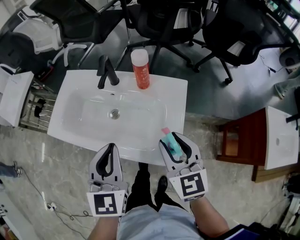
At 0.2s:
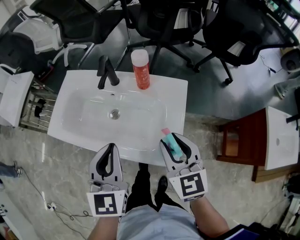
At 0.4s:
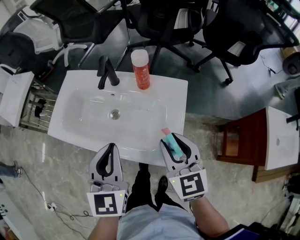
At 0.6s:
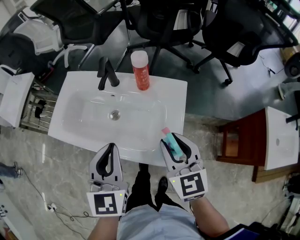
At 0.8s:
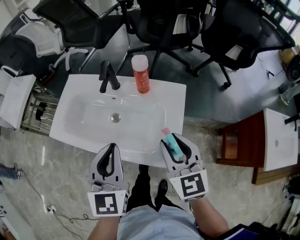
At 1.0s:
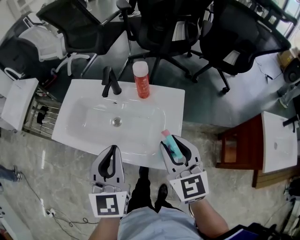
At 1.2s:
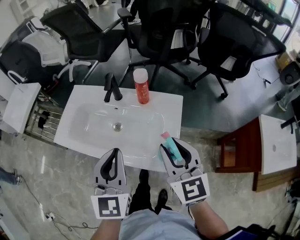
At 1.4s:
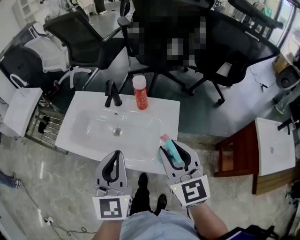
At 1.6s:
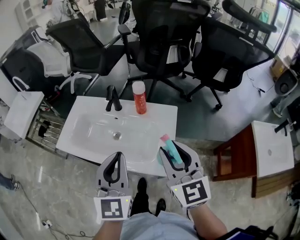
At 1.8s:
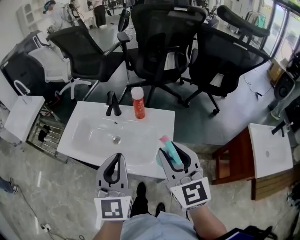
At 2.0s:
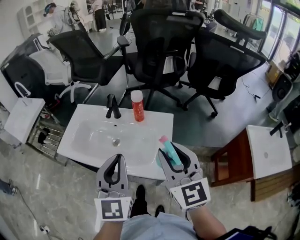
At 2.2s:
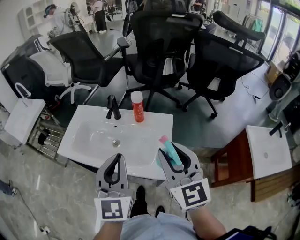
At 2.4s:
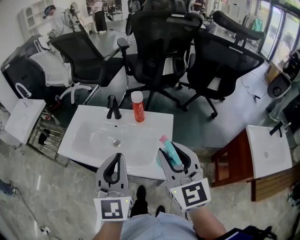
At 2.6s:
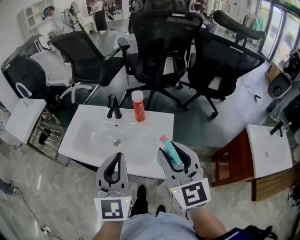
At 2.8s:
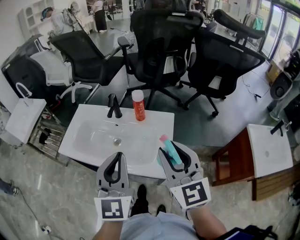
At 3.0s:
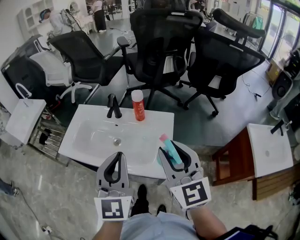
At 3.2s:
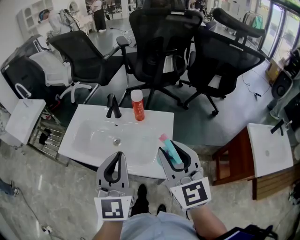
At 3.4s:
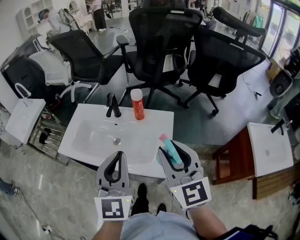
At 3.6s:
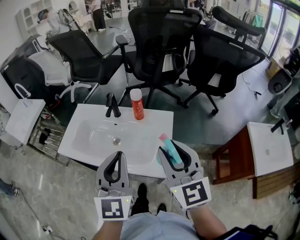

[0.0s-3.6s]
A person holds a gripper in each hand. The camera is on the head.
0.0s to 1.8s: The left gripper shifts roughly 10 cm upward and backward, while the right gripper heads upward, covering roughly 15 cm.
1.8s to 3.6s: The grippers move only a little.

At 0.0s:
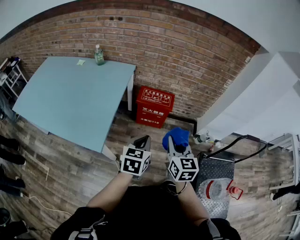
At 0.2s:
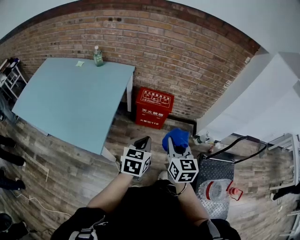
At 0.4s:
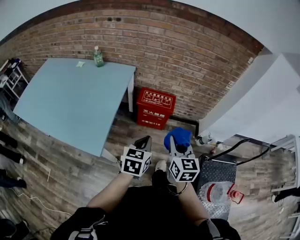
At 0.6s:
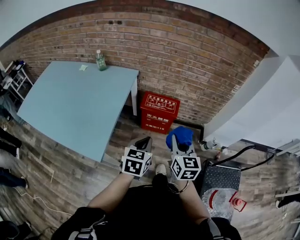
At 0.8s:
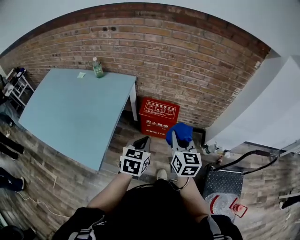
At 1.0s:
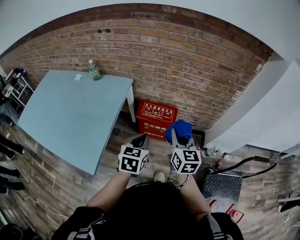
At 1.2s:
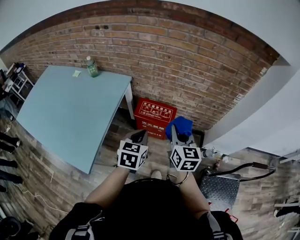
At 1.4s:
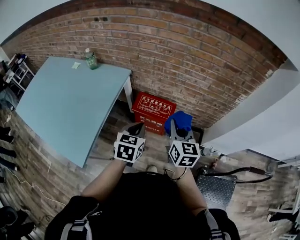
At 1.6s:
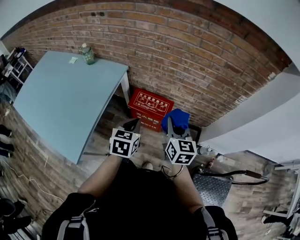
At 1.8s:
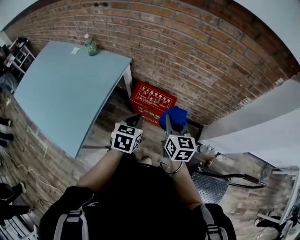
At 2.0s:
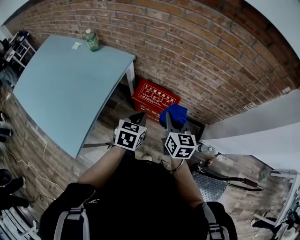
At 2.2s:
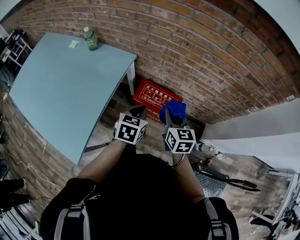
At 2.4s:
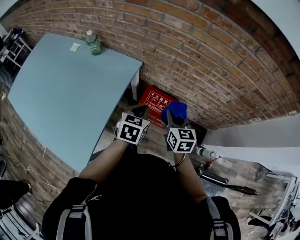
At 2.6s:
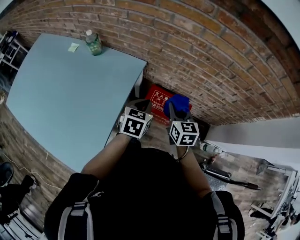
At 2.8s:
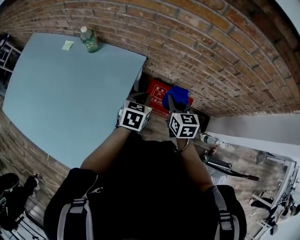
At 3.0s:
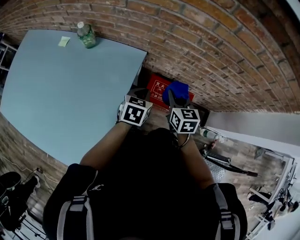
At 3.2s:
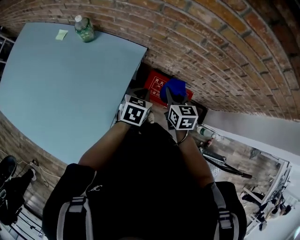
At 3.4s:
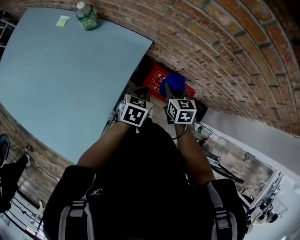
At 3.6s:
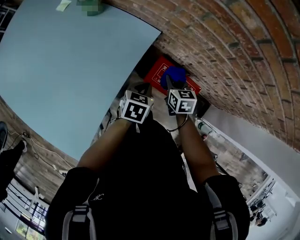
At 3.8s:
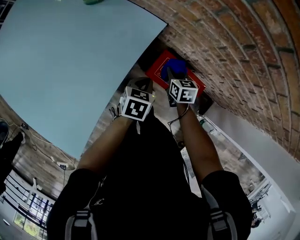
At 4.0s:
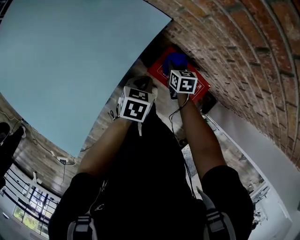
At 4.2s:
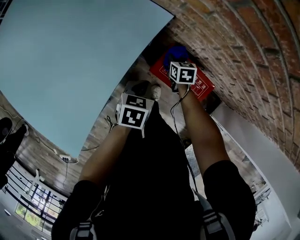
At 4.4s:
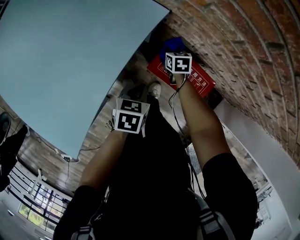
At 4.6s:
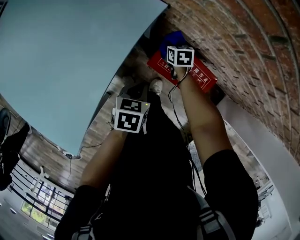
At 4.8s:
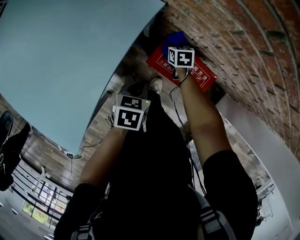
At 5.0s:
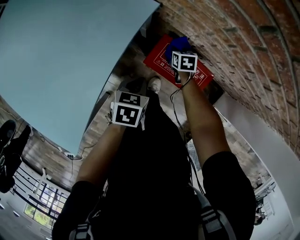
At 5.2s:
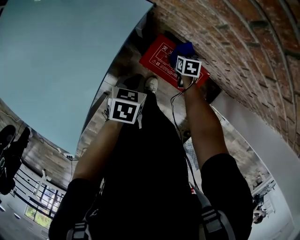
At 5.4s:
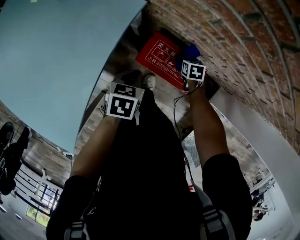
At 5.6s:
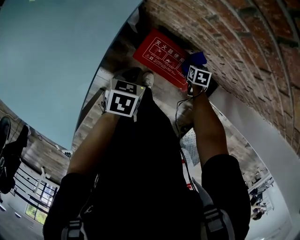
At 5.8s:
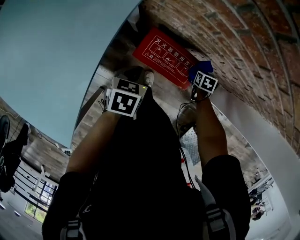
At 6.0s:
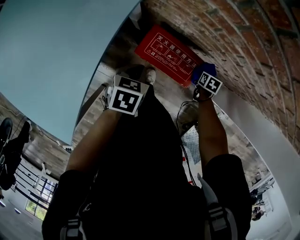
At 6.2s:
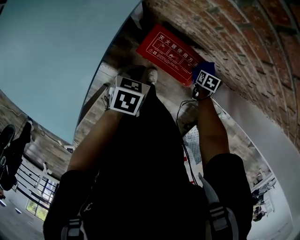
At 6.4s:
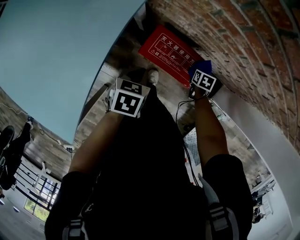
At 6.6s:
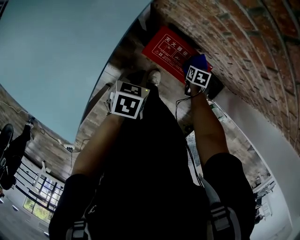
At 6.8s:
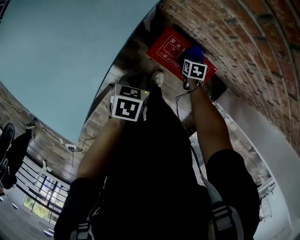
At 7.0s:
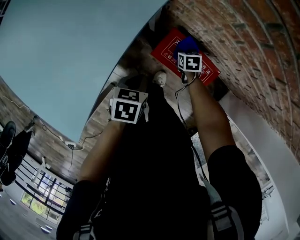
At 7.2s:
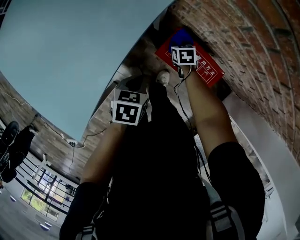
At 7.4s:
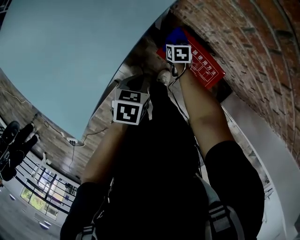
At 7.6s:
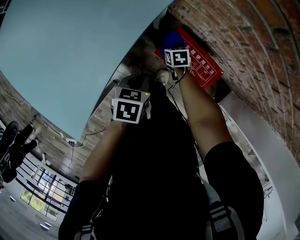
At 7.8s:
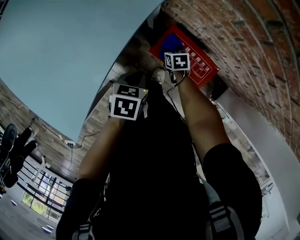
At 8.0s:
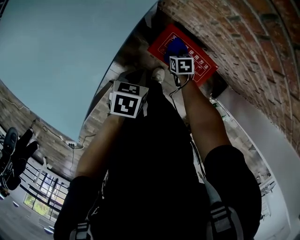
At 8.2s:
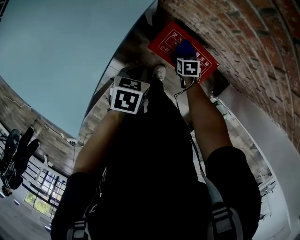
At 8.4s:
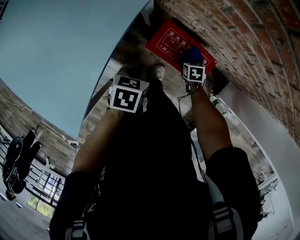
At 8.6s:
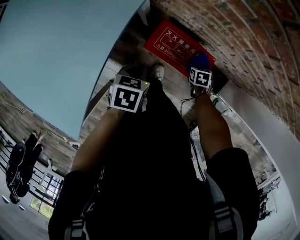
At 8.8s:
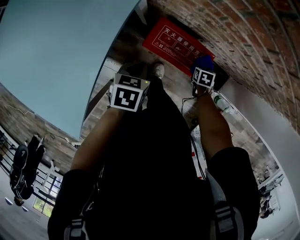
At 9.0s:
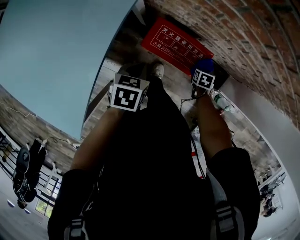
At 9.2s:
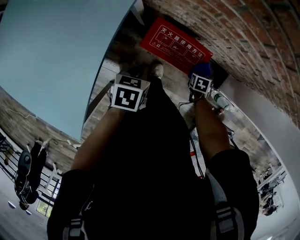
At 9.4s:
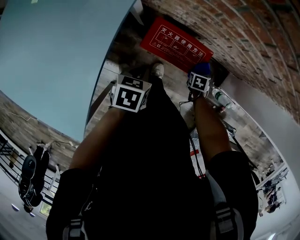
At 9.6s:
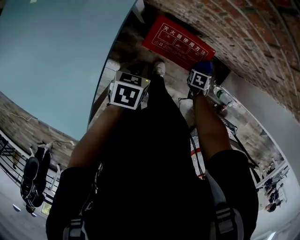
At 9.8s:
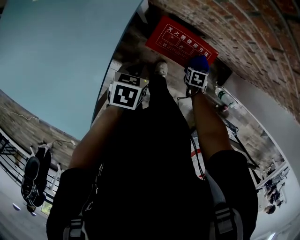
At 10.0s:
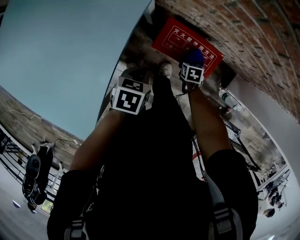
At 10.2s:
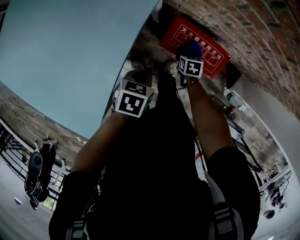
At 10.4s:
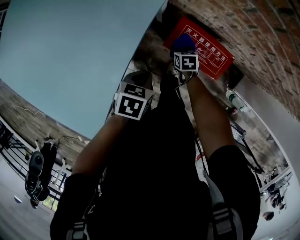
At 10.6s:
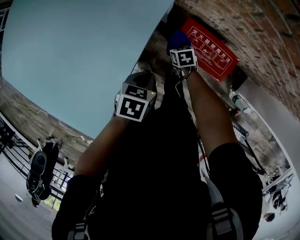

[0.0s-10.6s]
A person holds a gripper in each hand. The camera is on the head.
0.0s to 1.6s: The grippers both shift forward by about 30 cm.
1.6s to 3.0s: The right gripper is displaced forward, to the left and downward by some 35 cm. The left gripper travels forward and to the left by approximately 30 cm.
3.0s to 4.6s: The right gripper heads downward and forward, covering roughly 40 cm, and turns by approximately 30 degrees. Meanwhile the left gripper moves downward, some 20 cm, and turns by about 30 degrees.
4.6s to 6.0s: The left gripper shifts some 5 cm to the right; the right gripper is displaced to the right by roughly 35 cm, and changes its angle by about 30 degrees.
6.0s to 7.6s: The left gripper shifts by approximately 10 cm, while the right gripper ends up about 35 cm from where it was, and rotates some 40 degrees.
7.6s to 9.0s: The right gripper shifts by approximately 30 cm, and changes its angle by some 30 degrees. Meanwhile the left gripper moves some 5 cm.
9.0s to 10.6s: The left gripper shifts by some 10 cm; the right gripper shifts by roughly 35 cm, and swivels some 30 degrees.

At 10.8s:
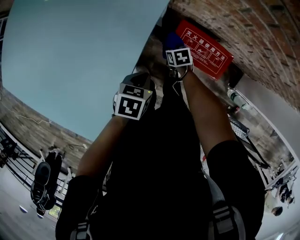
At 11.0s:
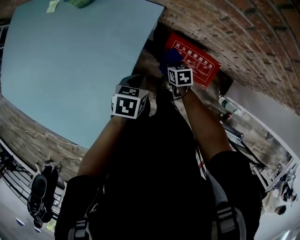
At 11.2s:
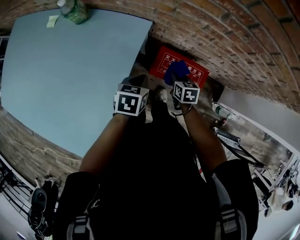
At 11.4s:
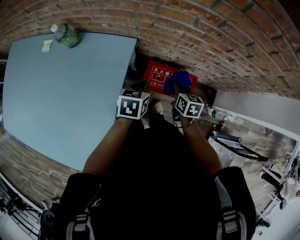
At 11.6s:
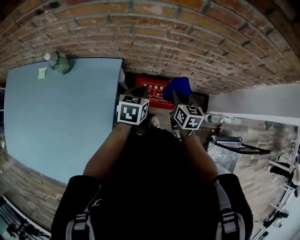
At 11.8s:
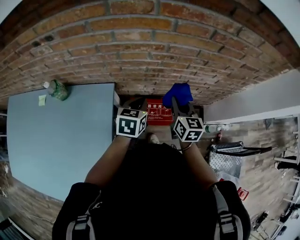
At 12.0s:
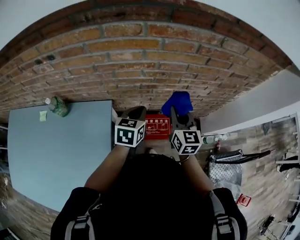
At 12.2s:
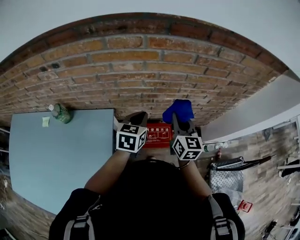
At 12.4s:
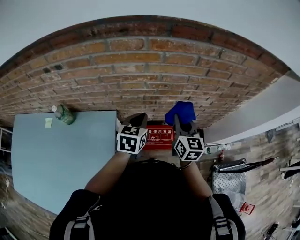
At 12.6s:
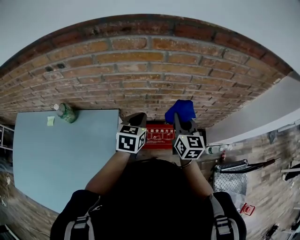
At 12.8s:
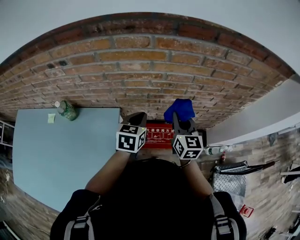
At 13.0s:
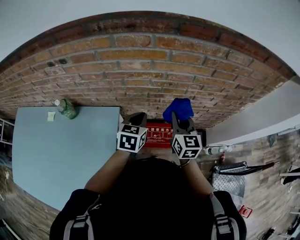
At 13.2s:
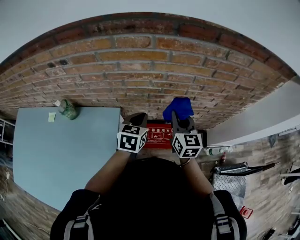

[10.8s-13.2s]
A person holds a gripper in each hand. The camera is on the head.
10.8s to 12.0s: The right gripper goes roughly 50 cm upward, and points its fingers roughly 50 degrees further upward; the left gripper moves upward, roughly 25 cm, and angles its fingers upward, by about 30 degrees.
12.0s to 13.2s: The grippers stay close to where they were, moving slightly.

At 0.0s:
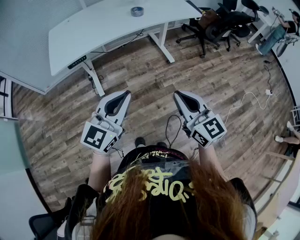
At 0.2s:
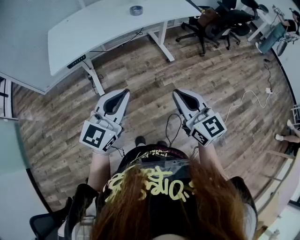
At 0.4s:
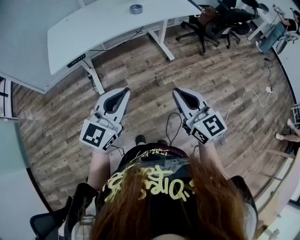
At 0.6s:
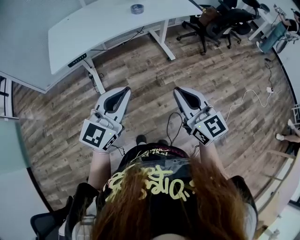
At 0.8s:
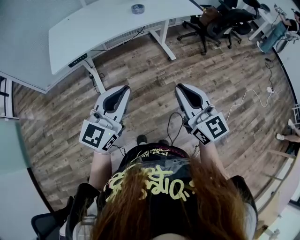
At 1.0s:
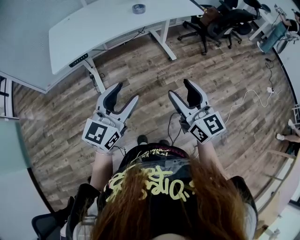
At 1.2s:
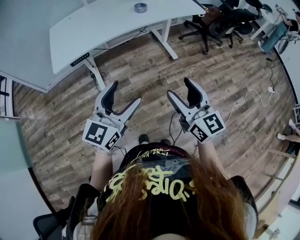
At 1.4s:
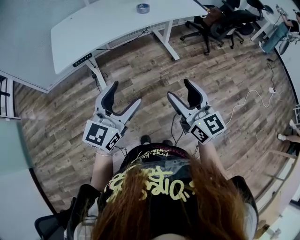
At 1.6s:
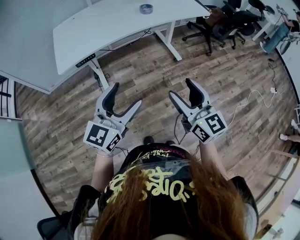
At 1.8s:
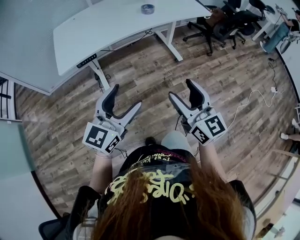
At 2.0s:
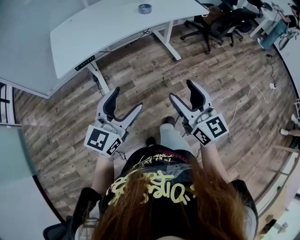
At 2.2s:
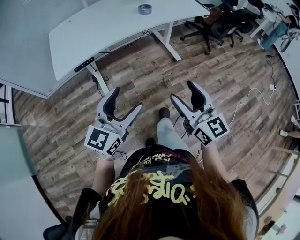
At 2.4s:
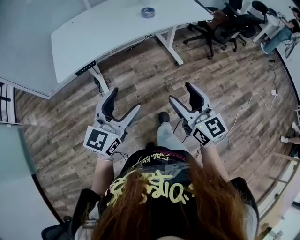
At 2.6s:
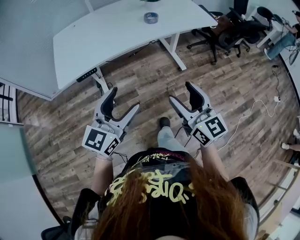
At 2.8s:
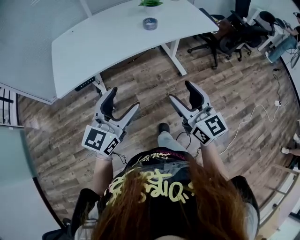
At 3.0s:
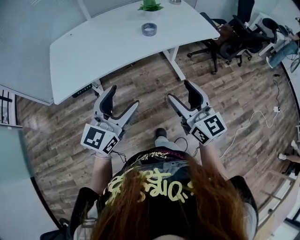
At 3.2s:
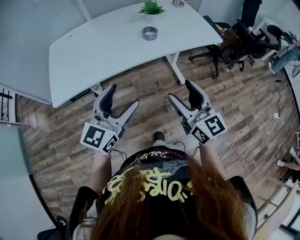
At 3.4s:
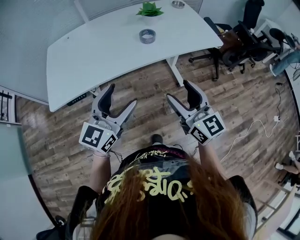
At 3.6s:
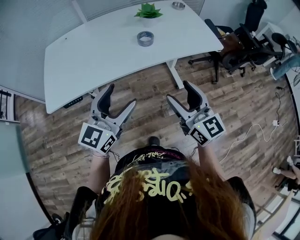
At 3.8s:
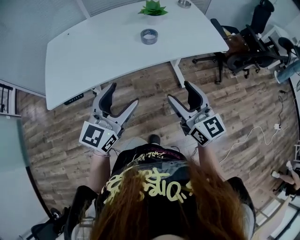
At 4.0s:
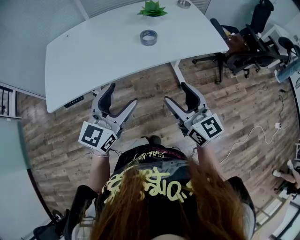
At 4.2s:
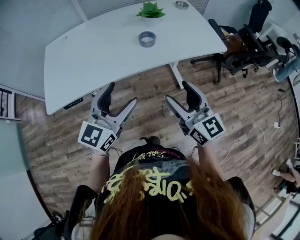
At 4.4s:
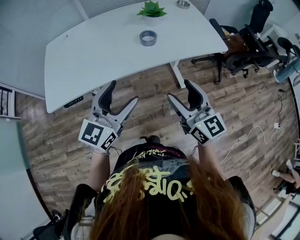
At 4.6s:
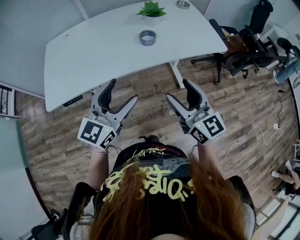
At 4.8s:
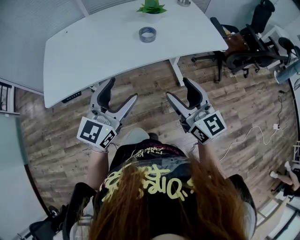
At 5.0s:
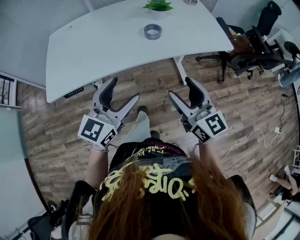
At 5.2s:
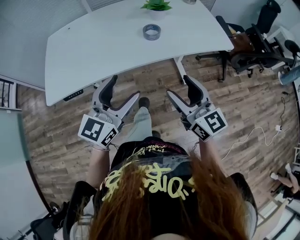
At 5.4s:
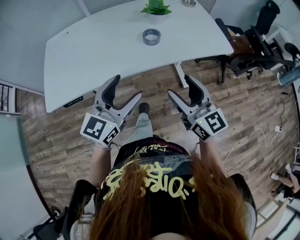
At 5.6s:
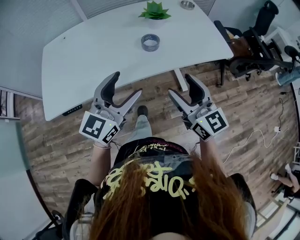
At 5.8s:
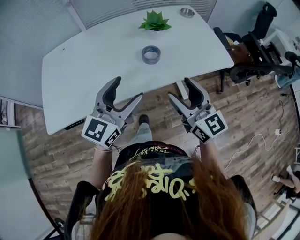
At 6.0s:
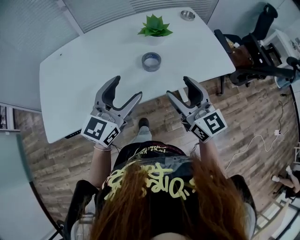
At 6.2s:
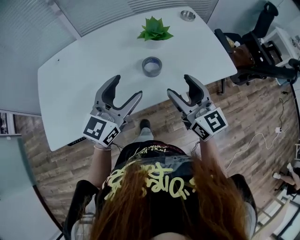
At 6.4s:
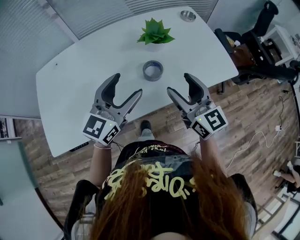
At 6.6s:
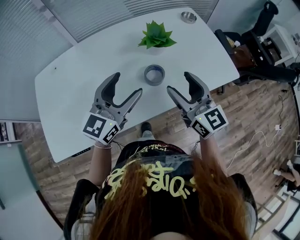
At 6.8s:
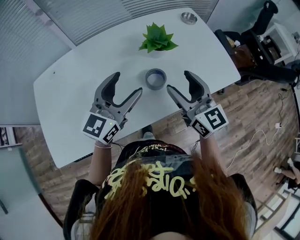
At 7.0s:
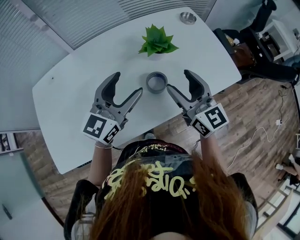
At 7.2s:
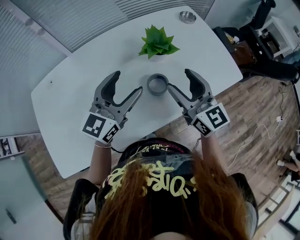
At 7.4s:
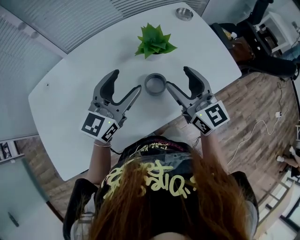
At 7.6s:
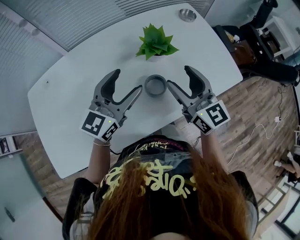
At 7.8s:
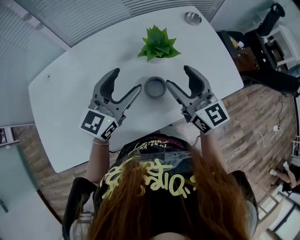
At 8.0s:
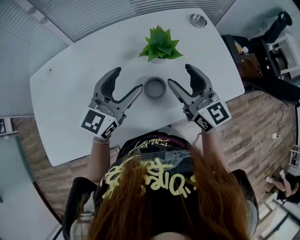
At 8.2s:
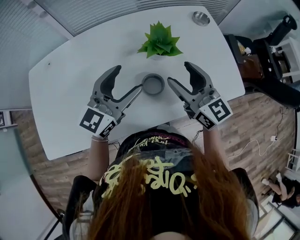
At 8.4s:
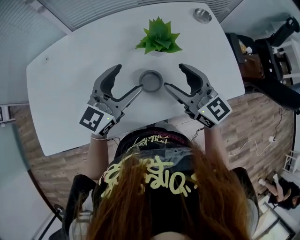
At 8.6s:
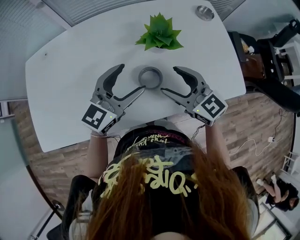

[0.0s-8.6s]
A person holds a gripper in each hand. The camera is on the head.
0.0s to 1.4s: The left gripper opens its fingers, while the right gripper opens up.
1.4s to 2.8s: Both grippers move forward, some 15 cm.
2.8s to 4.4s: The two grippers go approximately 20 cm forward and to the right.
4.4s to 5.8s: The grippers both shift forward by some 10 cm.
5.8s to 7.2s: The two grippers go some 20 cm forward.
7.2s to 8.6s: Both grippers travel together downward, approximately 5 cm. The right gripper changes its angle by some 30 degrees.
